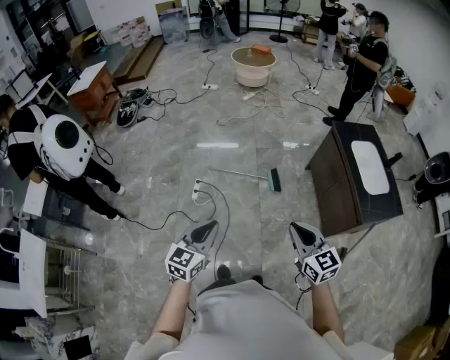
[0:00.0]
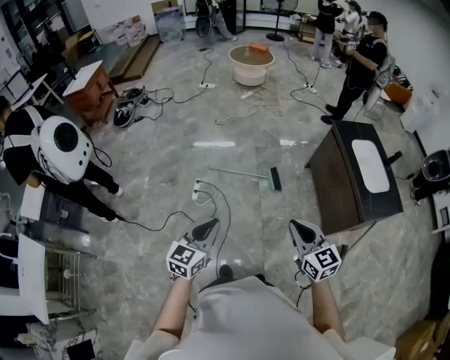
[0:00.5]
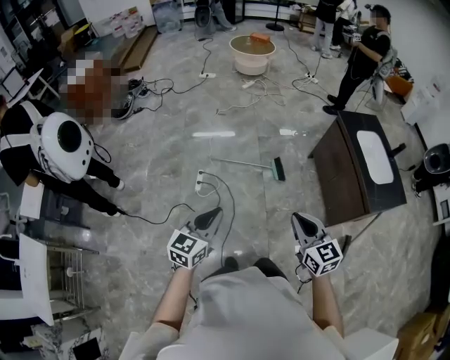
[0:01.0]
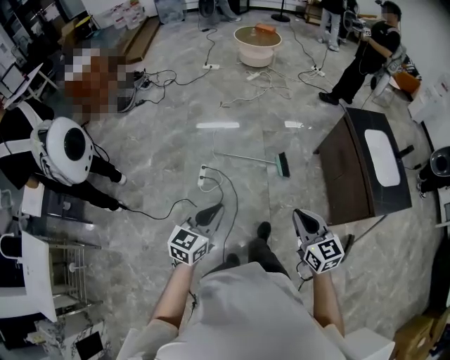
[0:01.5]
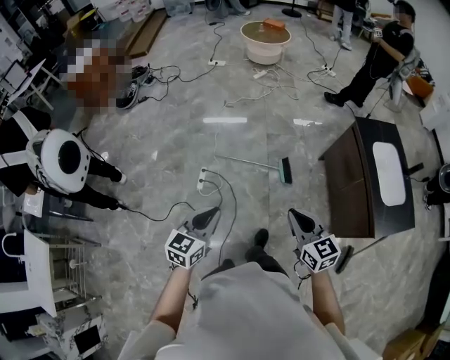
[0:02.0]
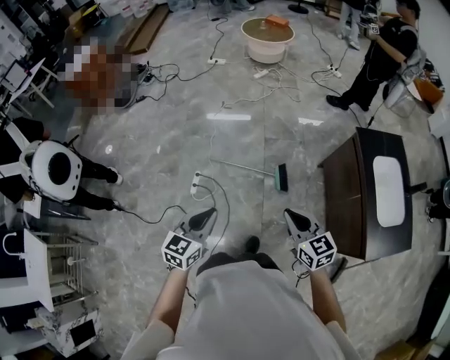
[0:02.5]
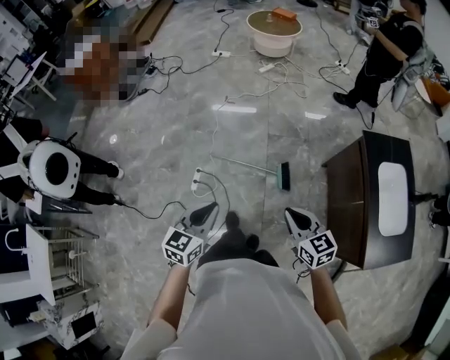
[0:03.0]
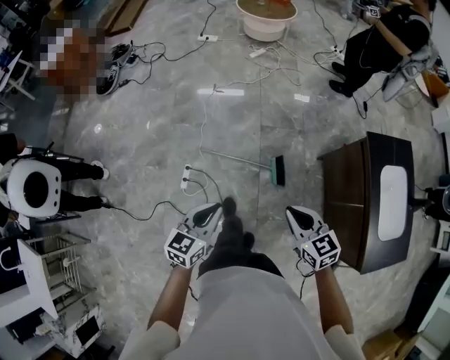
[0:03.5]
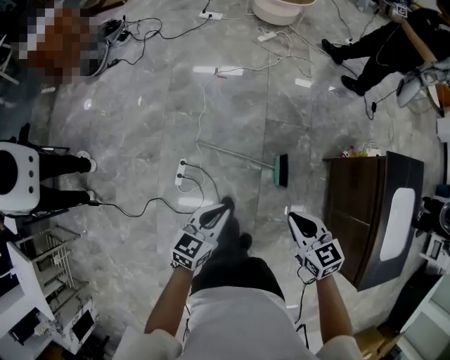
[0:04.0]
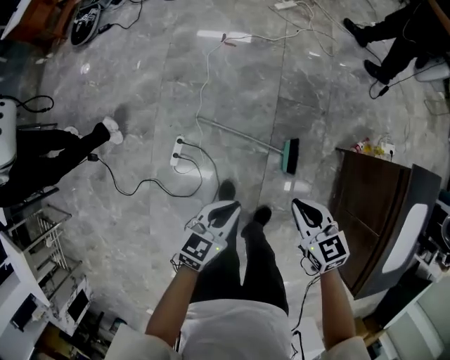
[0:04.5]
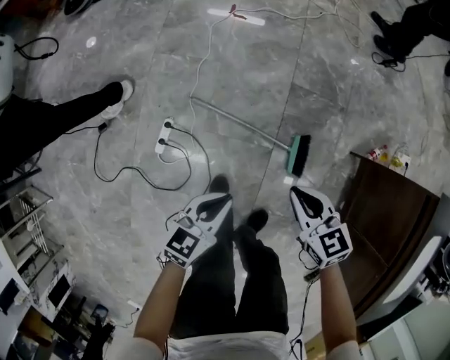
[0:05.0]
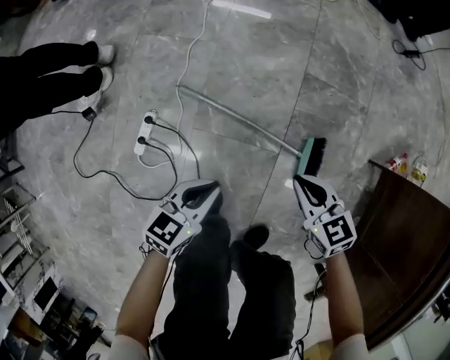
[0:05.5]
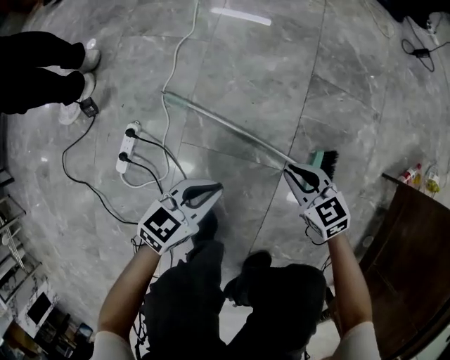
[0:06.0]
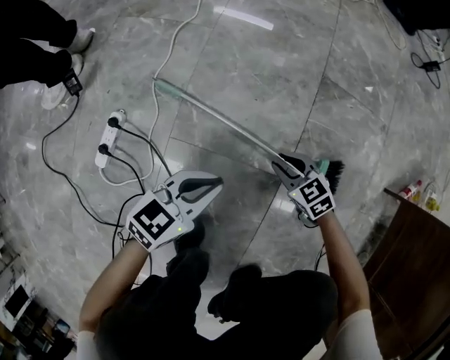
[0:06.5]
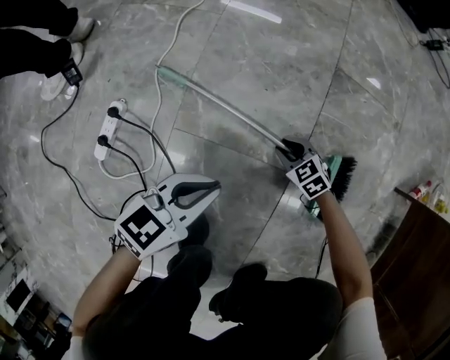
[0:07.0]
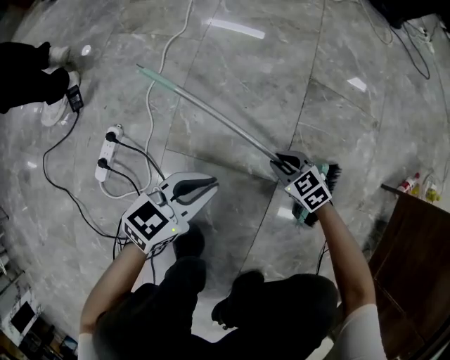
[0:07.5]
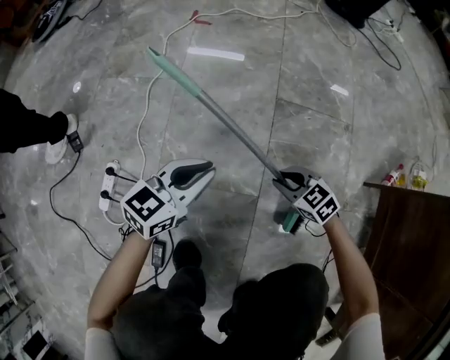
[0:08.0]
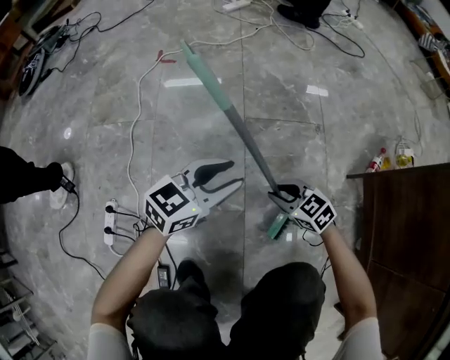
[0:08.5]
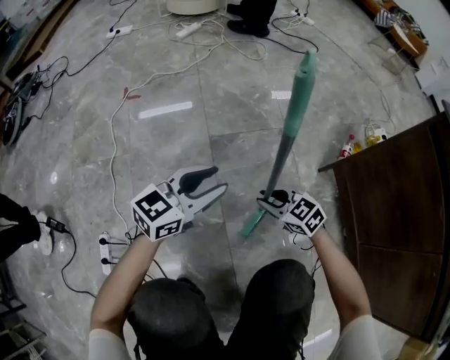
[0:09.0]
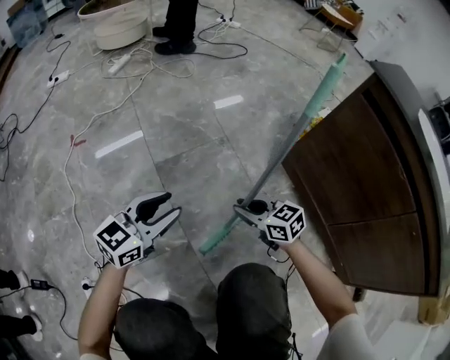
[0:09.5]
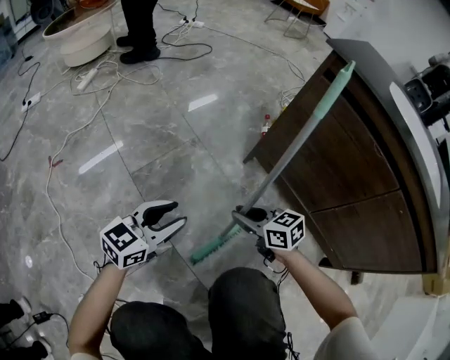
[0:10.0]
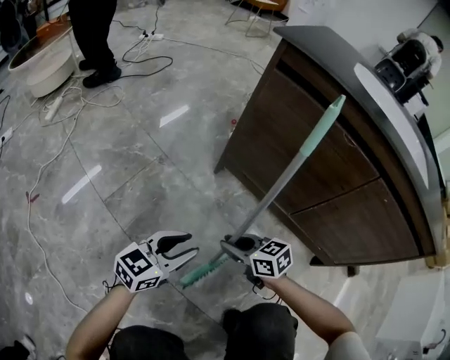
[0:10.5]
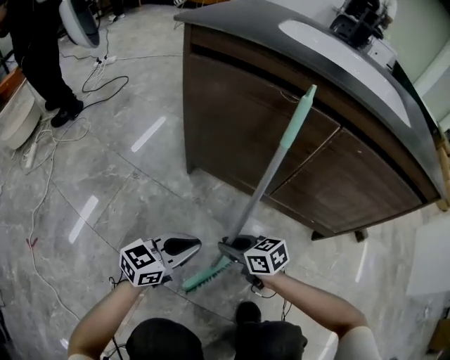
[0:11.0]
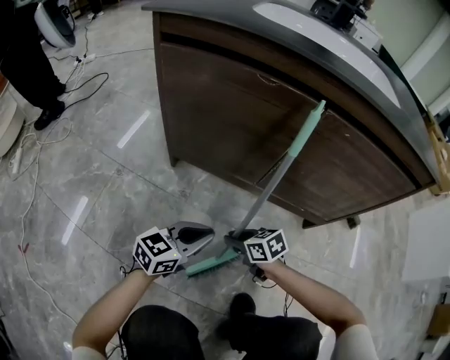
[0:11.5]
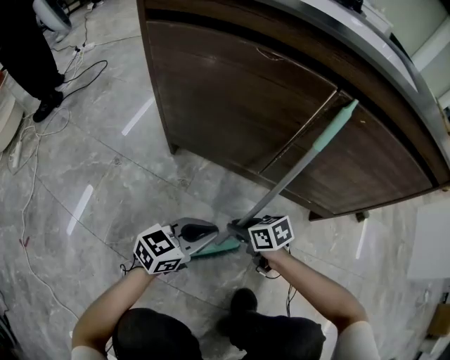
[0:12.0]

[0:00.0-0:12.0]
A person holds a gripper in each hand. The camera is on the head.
0:00.0 to 0:02.0: Both grippers travel together forward, roughly 20 cm.
0:02.0 to 0:04.0: Both grippers move forward and downward, approximately 40 cm. The right gripper turns by some 20 degrees.
0:04.0 to 0:06.0: The two grippers go about 70 cm downward. The right gripper swivels approximately 20 degrees.
0:06.0 to 0:08.0: The right gripper moves to the right, roughly 10 cm, and reaches roughly 25 cm downward, then returns. Meanwhile the left gripper shifts about 10 cm forward and to the right.
0:08.0 to 0:10.0: The left gripper shifts by about 35 cm, changes its angle by about 50 degrees, and opens up. The right gripper moves roughly 35 cm, and swivels approximately 60 degrees.
0:10.0 to 0:12.0: The left gripper ends up about 35 cm from where it was, swivels about 40 degrees, and closes its fingers. Meanwhile the right gripper ends up about 30 cm from where it was, and changes its angle by roughly 40 degrees.

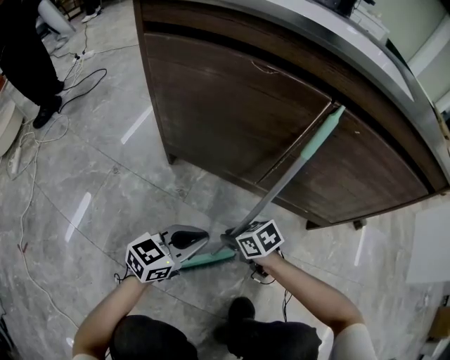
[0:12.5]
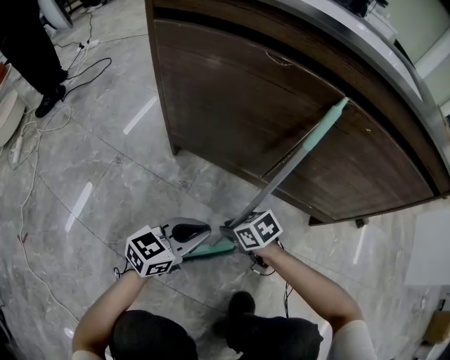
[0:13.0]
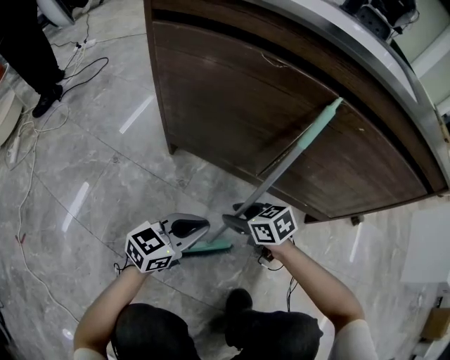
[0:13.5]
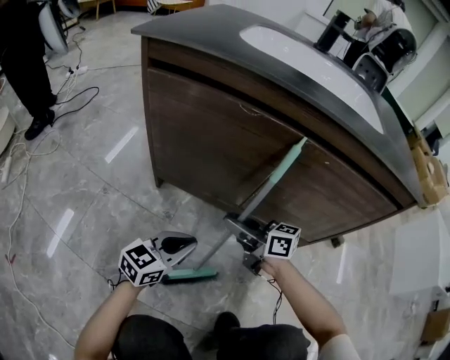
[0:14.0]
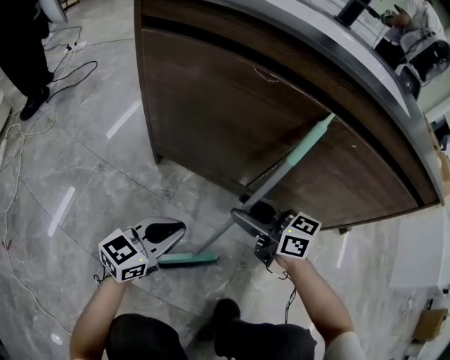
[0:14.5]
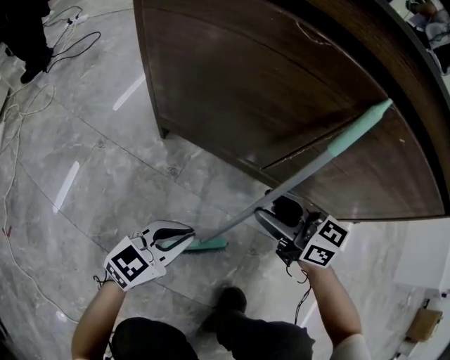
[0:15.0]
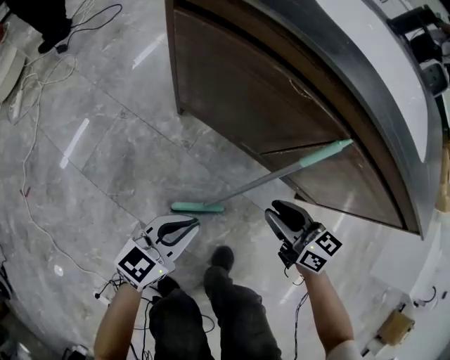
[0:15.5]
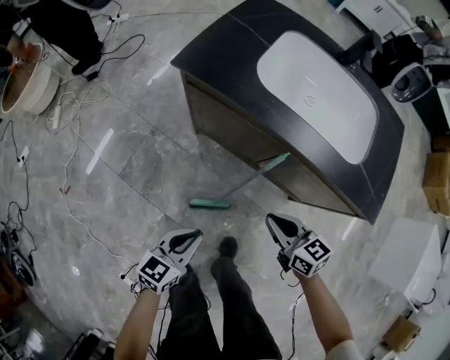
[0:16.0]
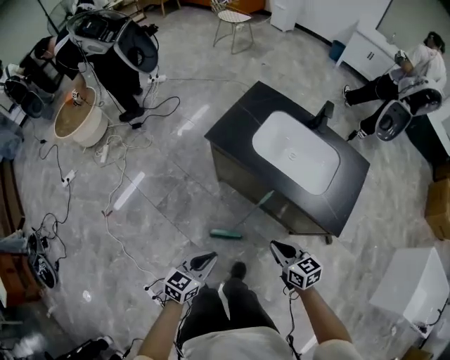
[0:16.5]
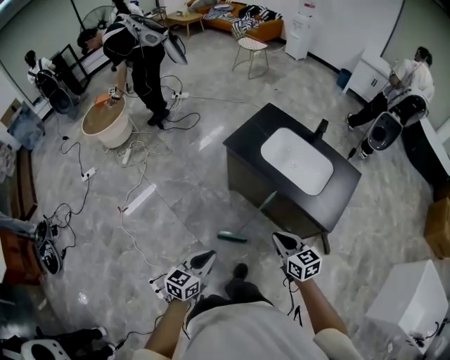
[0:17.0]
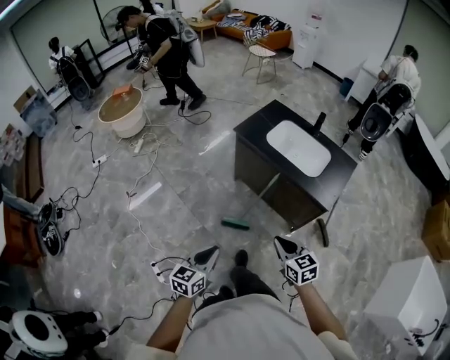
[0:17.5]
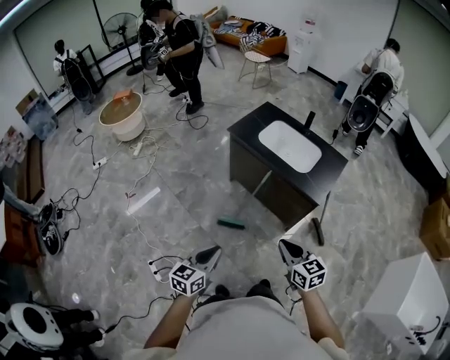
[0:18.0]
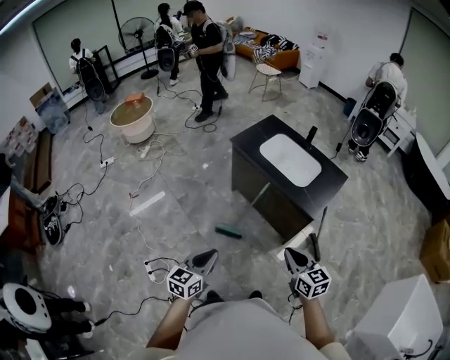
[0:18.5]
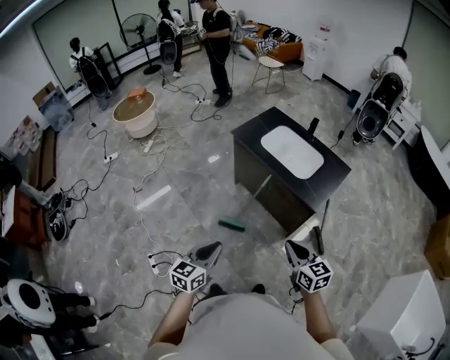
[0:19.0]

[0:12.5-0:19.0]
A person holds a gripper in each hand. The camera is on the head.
0:12.5 to 0:14.5: The left gripper ends up approximately 5 cm from where it was, while the right gripper travels upward by approximately 20 cm, tips its fingers upward by about 40 degrees, and opens.
0:14.5 to 0:17.0: The right gripper goes some 70 cm upward, and closes up. The left gripper moves upward and backward, about 70 cm, and rotates about 40 degrees.
0:17.0 to 0:19.0: The right gripper goes roughly 30 cm backward and to the right. Meanwhile the left gripper shifts approximately 25 cm backward, to the right and upward.

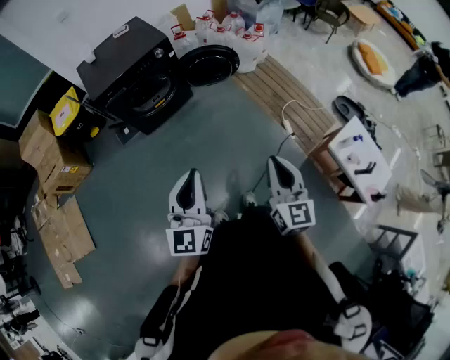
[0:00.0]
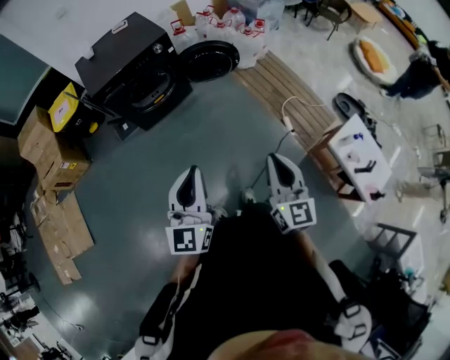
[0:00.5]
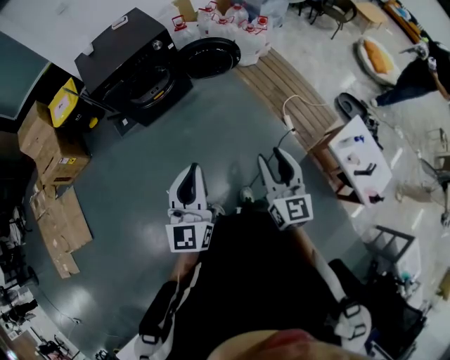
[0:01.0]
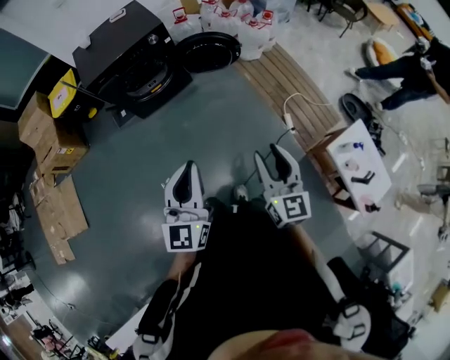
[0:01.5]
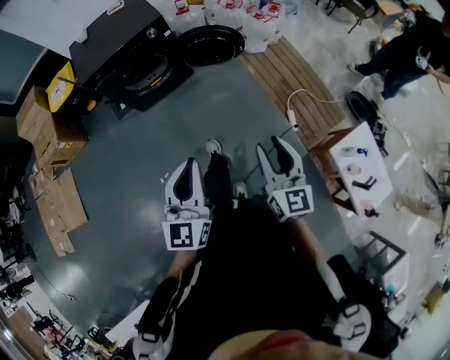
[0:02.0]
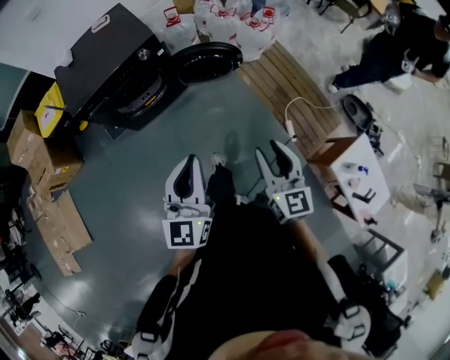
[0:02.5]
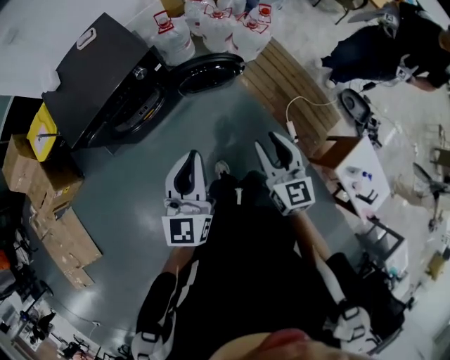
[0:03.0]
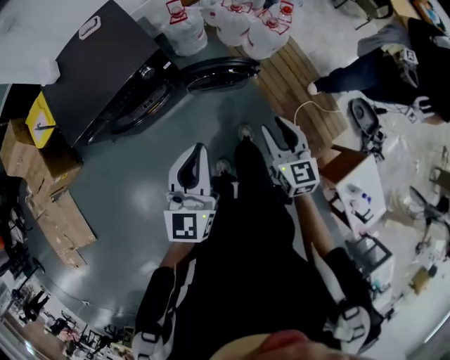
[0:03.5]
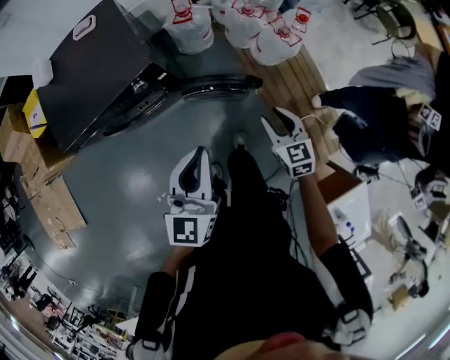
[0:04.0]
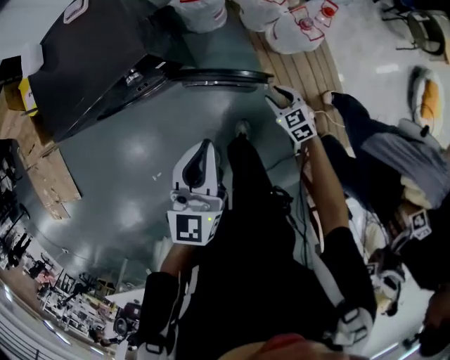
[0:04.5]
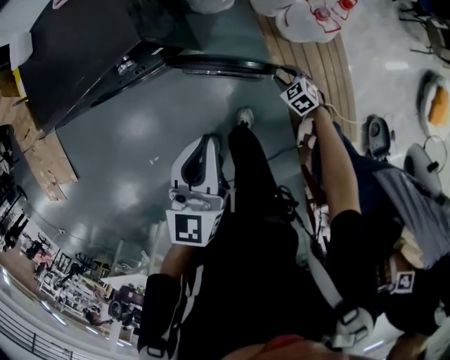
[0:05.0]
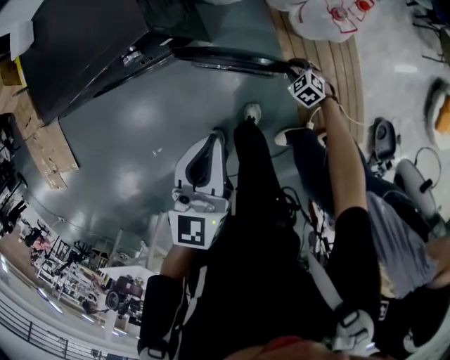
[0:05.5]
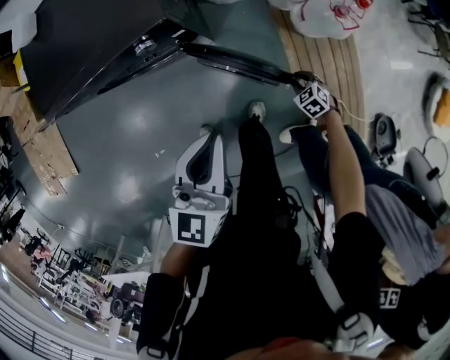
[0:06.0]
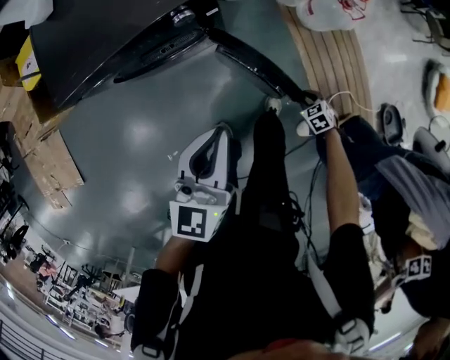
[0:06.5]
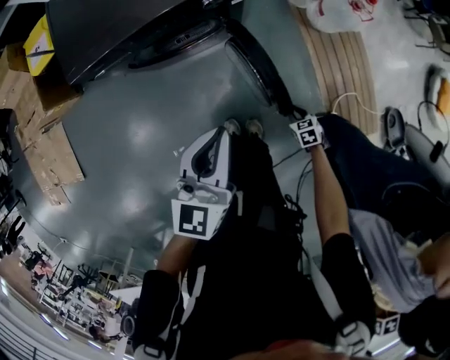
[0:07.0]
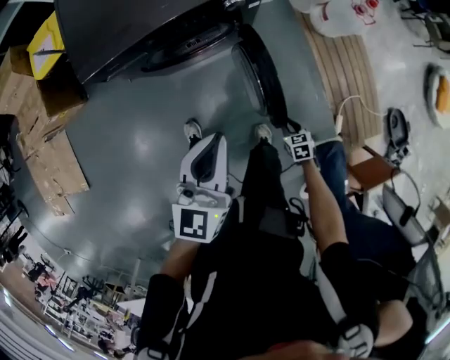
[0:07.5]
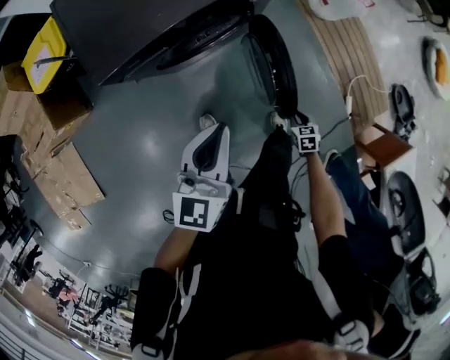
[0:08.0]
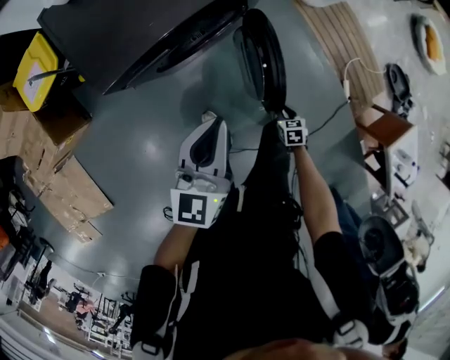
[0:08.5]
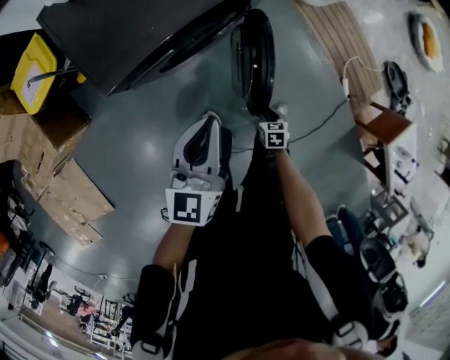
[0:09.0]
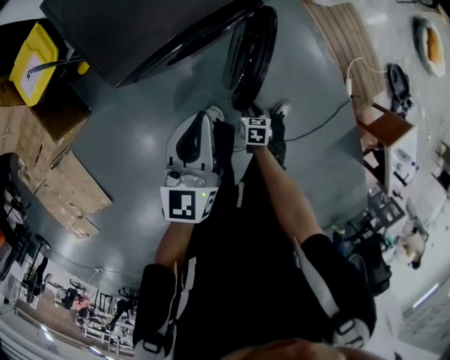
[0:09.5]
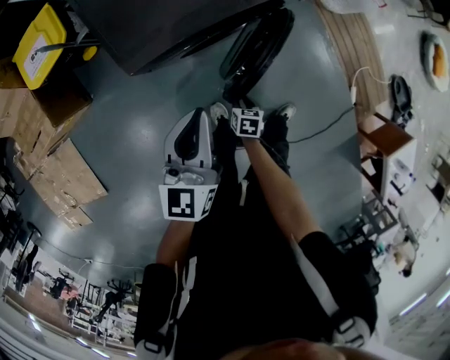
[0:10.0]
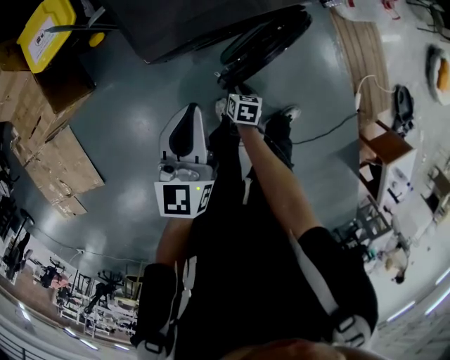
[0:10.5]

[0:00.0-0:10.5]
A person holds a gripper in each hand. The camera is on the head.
0:00.0 to 0:02.0: The left gripper shifts approximately 15 cm to the right and forward. Meanwhile the right gripper goes about 15 cm forward and to the right, and opens up.
0:02.0 to 0:04.0: The pair of grippers is taken forward, some 60 cm. The right gripper swivels approximately 30 degrees.
0:04.0 to 0:06.5: The left gripper heads to the left and downward, covering roughly 20 cm; the right gripper travels downward by roughly 35 cm, and tips its fingers downward by approximately 40 degrees.
0:06.5 to 0:08.5: The left gripper travels to the left by about 25 cm, while the right gripper goes roughly 40 cm to the left and backward, and rotates approximately 40 degrees.
0:08.5 to 0:10.5: The right gripper is displaced to the left by about 30 cm; the left gripper heads to the left, covering about 20 cm.
